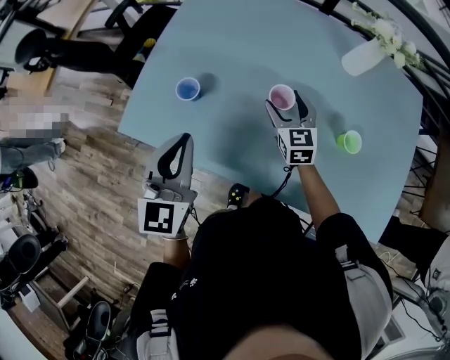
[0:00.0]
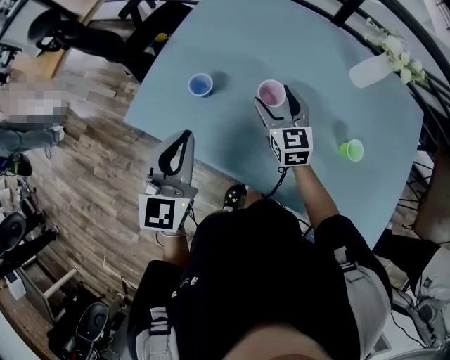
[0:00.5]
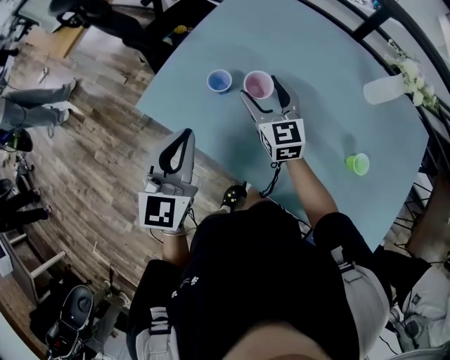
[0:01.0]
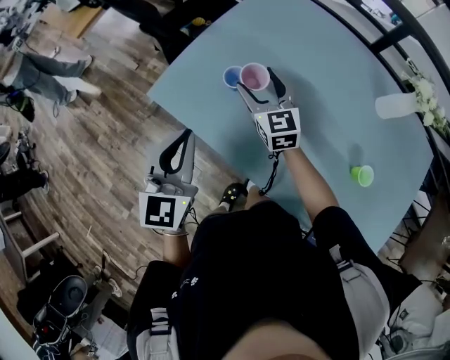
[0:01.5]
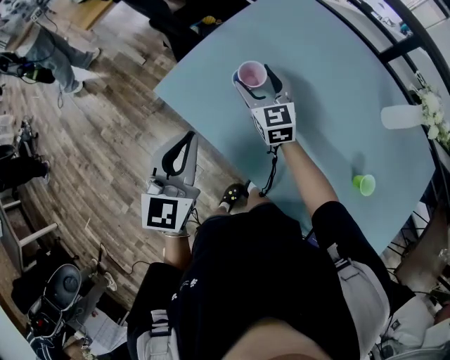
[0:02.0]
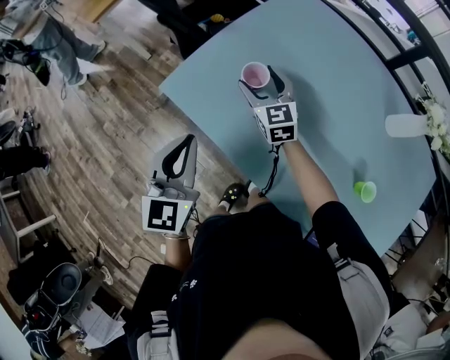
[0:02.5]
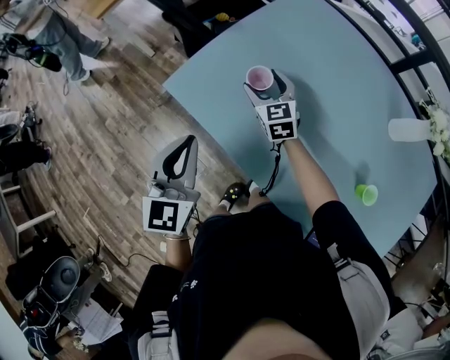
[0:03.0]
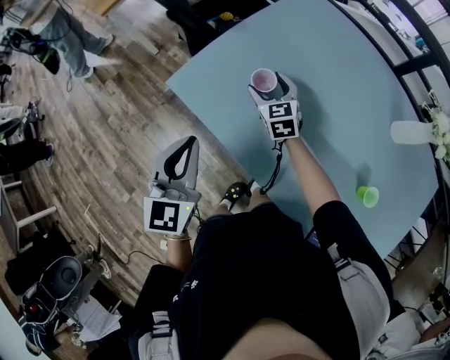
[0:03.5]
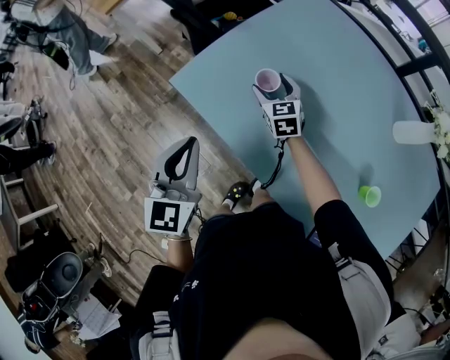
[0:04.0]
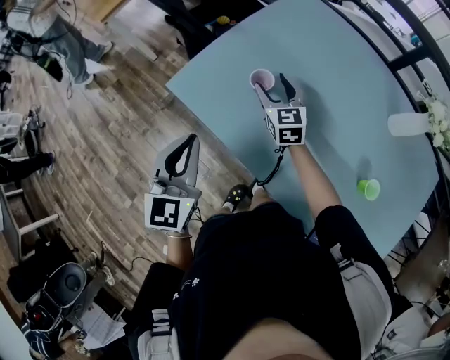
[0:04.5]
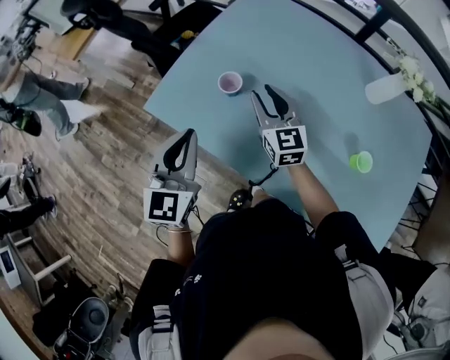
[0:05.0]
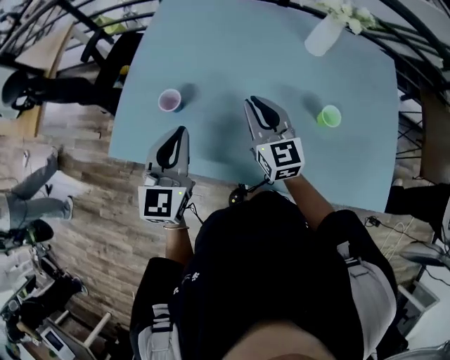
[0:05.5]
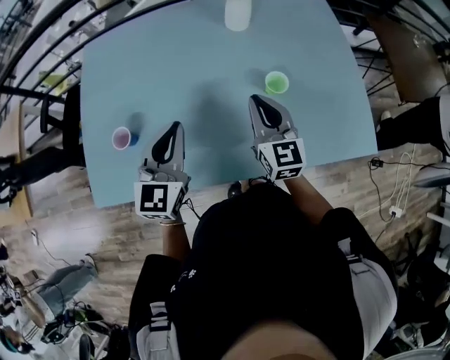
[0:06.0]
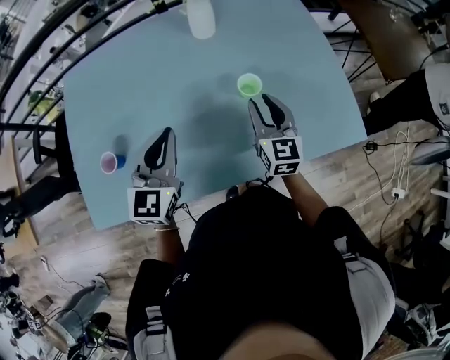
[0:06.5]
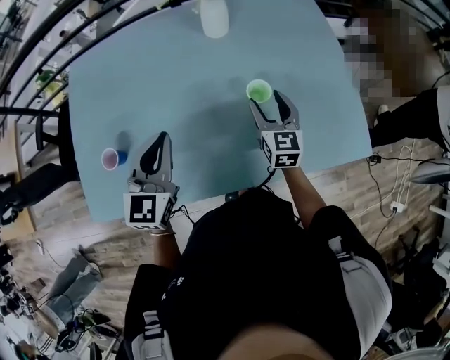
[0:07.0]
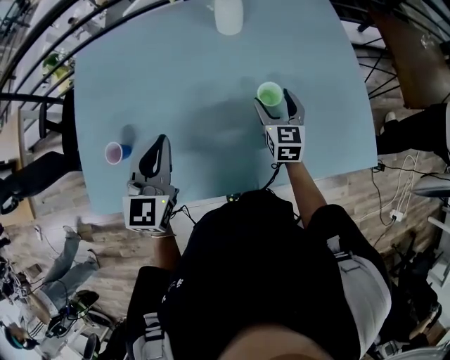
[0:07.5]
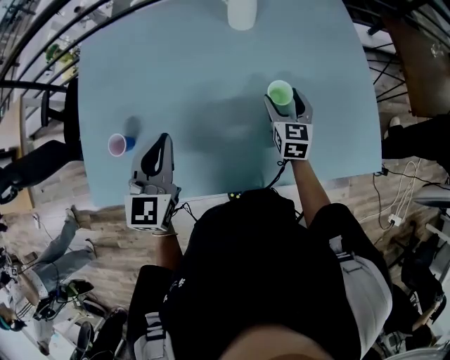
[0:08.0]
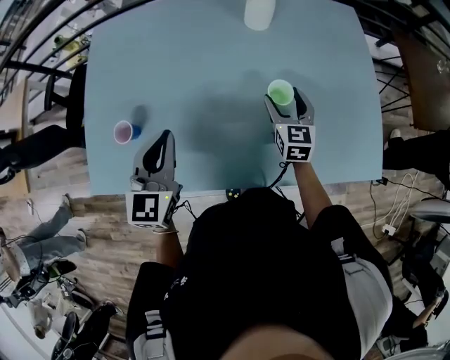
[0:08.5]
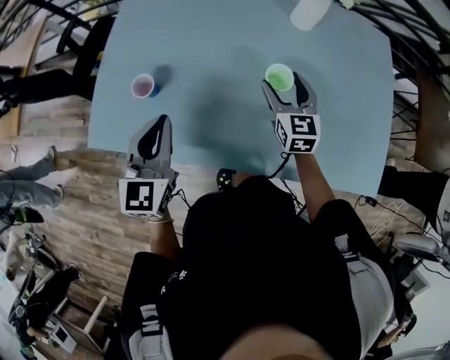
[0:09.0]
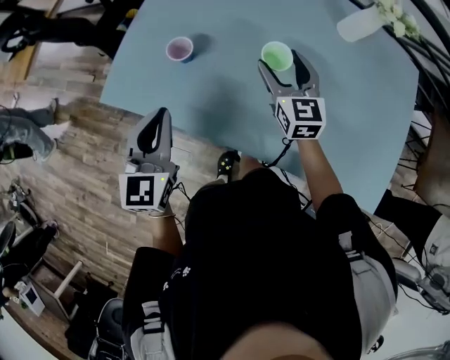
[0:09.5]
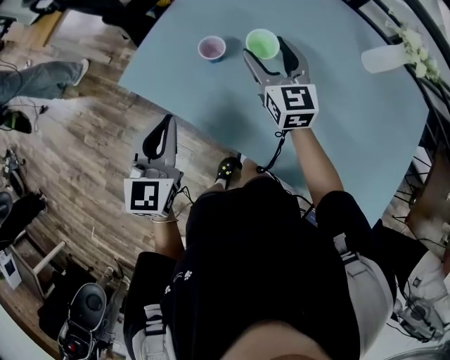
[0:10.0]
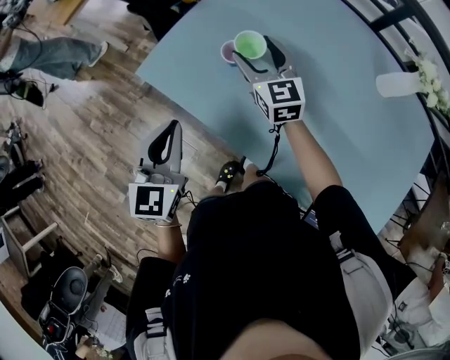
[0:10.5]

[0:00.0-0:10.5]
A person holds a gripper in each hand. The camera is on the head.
0:00.0 to 0:02.0: The right gripper shifts approximately 25 cm to the left, and changes its angle by some 30 degrees. The left gripper shifts approximately 10 cm to the left.
0:02.0 to 0:04.0: The right gripper is displaced downward by about 10 cm.
0:04.0 to 0:06.5: The right gripper changes place by roughly 60 cm, rotates some 70 degrees, and closes its fingers. Meanwhile the left gripper changes place by approximately 35 cm, and rotates some 60 degrees.
0:06.5 to 0:08.5: The left gripper is displaced to the left by approximately 10 cm. Meanwhile the right gripper is displaced forward and downward by about 10 cm, and opens its fingers.
0:08.5 to 0:10.5: The right gripper moves about 50 cm, and turns by approximately 60 degrees. The left gripper moves approximately 30 cm, and changes its angle by about 40 degrees.

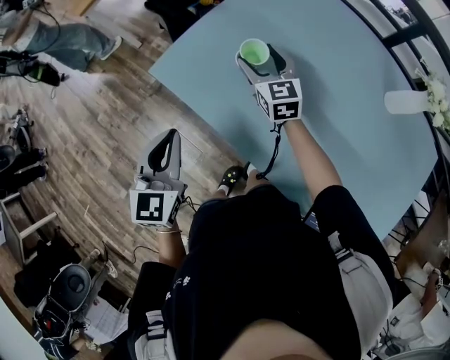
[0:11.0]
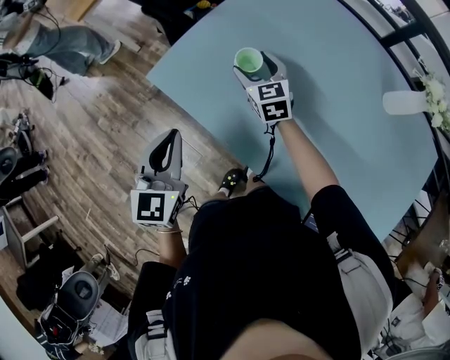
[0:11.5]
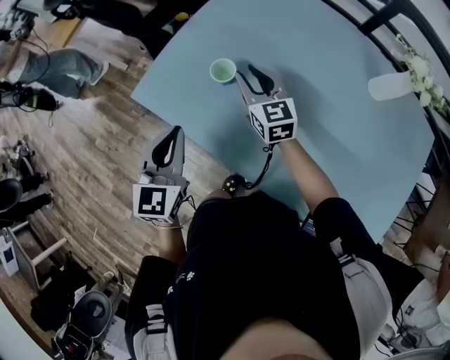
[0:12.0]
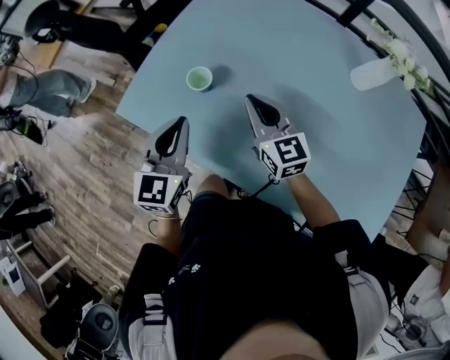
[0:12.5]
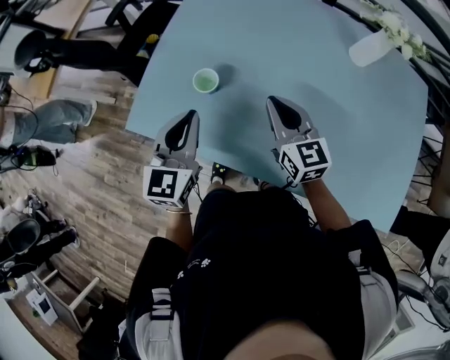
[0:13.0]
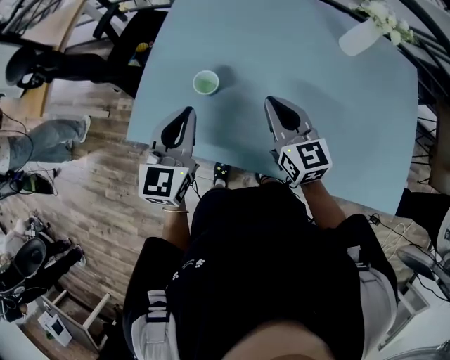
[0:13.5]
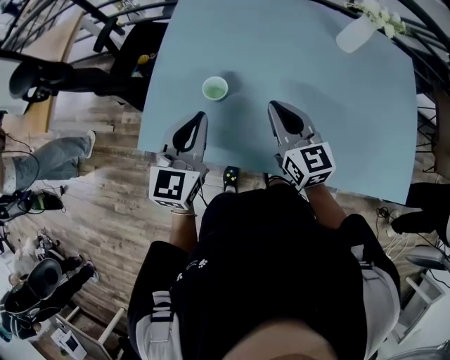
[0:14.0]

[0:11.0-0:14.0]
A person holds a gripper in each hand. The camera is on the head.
0:11.0 to 0:12.5: The right gripper moves to the right and backward, some 15 cm, and closes its fingers. The left gripper shifts roughly 15 cm to the right and forward.
0:12.5 to 0:14.0: The left gripper shifts by some 5 cm, and changes its angle by approximately 20 degrees, while the right gripper moves roughly 5 cm, and swivels roughly 20 degrees.

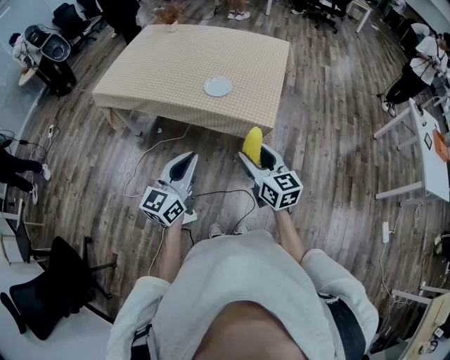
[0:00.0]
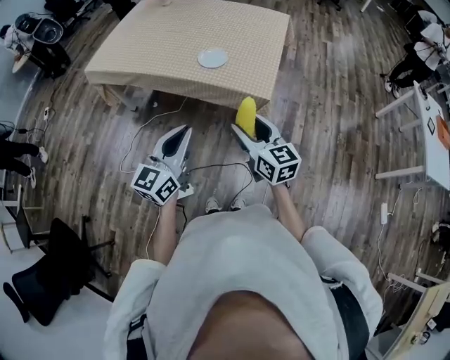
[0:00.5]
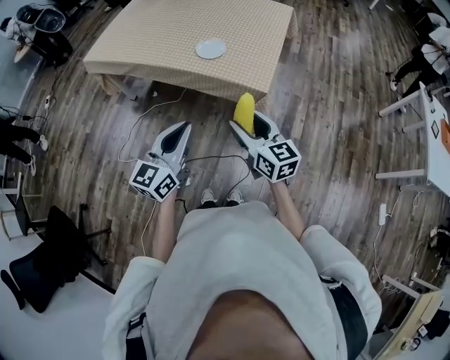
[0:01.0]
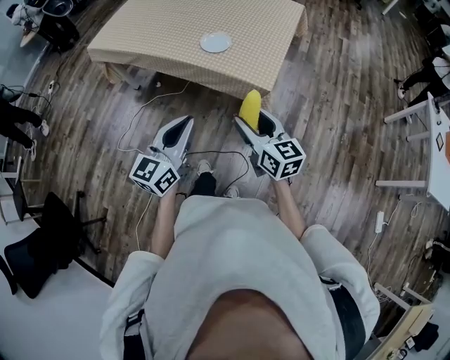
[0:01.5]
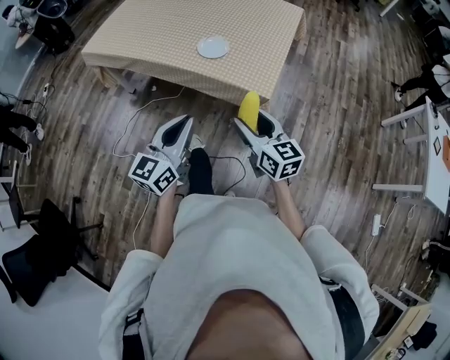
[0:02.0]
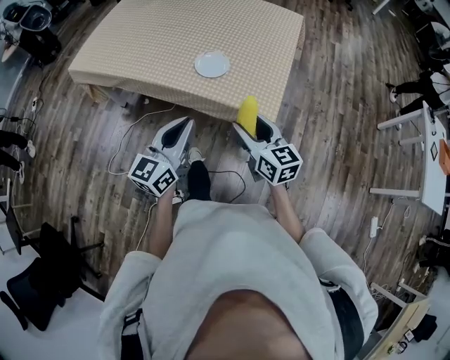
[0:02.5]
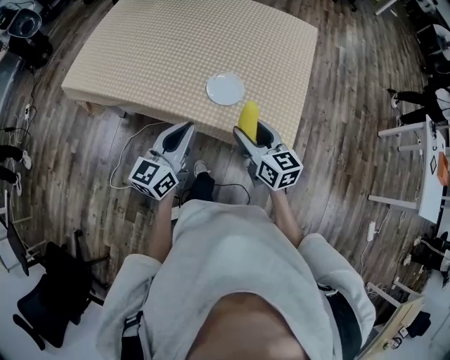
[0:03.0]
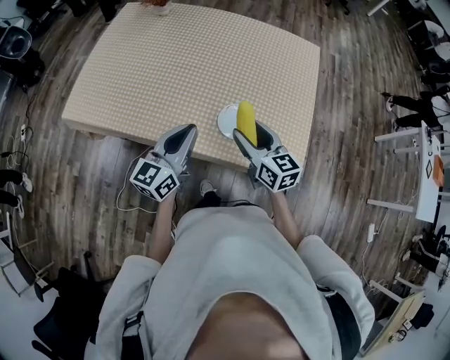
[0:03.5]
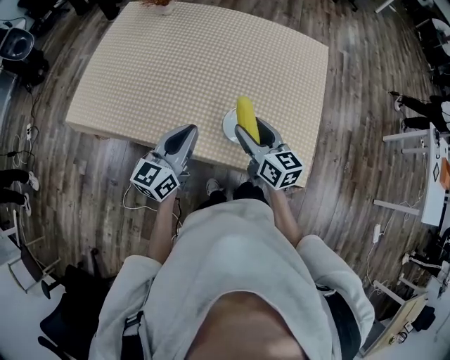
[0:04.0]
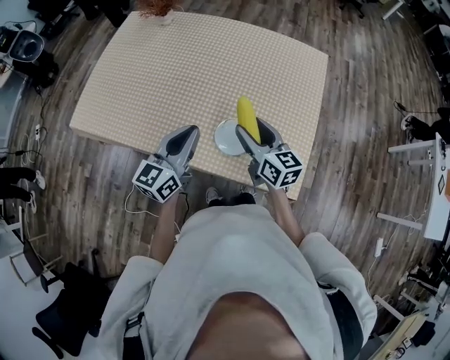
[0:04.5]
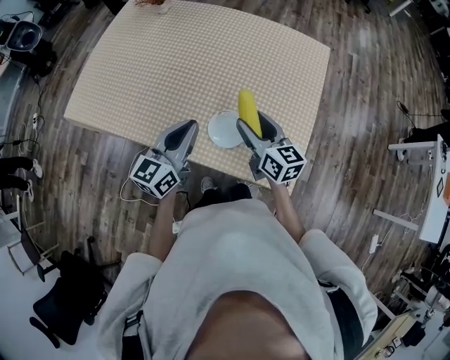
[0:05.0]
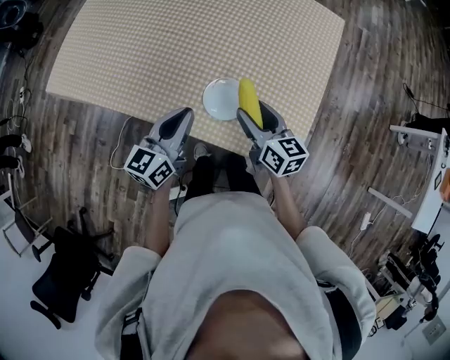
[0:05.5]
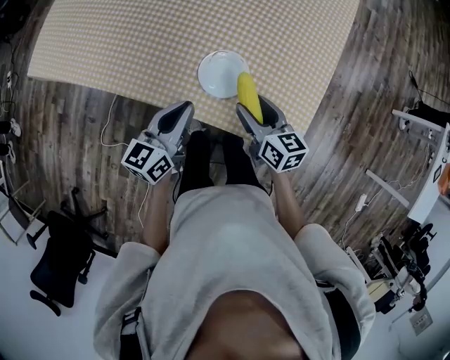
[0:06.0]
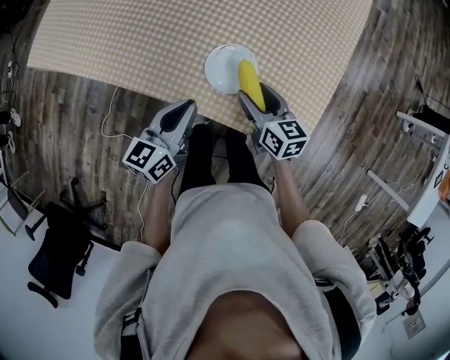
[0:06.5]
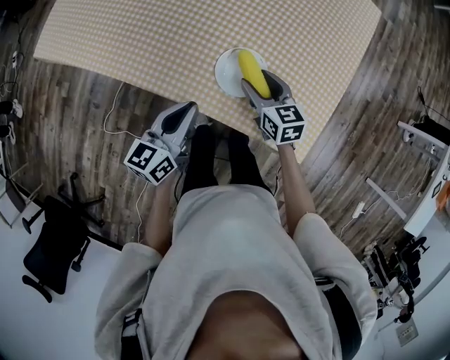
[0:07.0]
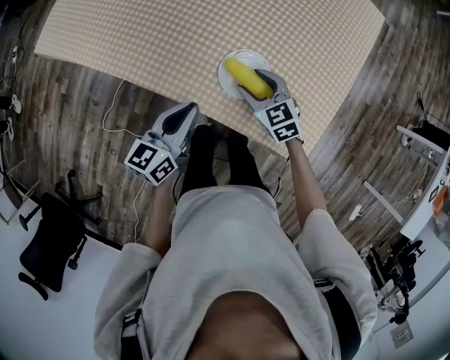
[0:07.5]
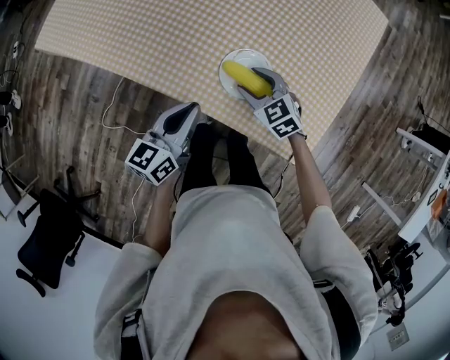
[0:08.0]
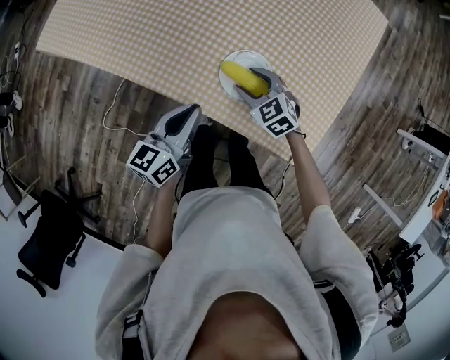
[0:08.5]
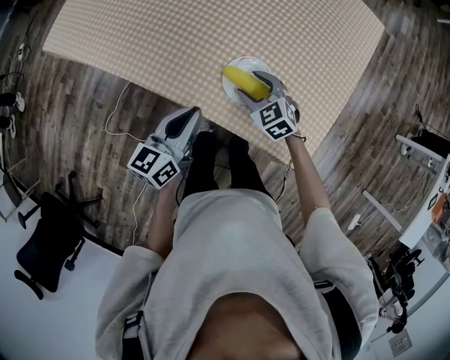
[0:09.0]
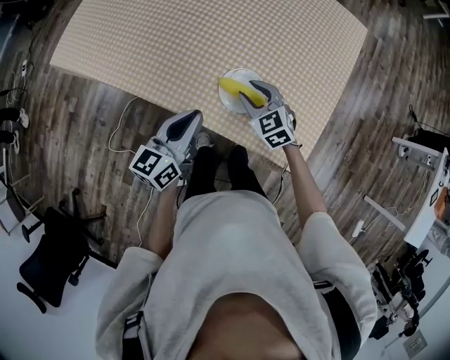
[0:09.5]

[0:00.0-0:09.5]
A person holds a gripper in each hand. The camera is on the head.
0:00.0 to 0:02.0: Both grippers travel together forward, some 5 cm.
0:02.0 to 0:04.0: The two grippers travel together, forward and to the left, some 40 cm.
0:04.0 to 0:05.5: Both grippers move downward and to the right, approximately 10 cm.
0:05.5 to 0:07.5: The left gripper is displaced downward by roughly 10 cm, while the right gripper moves downward and to the left, about 15 cm, and changes its angle by approximately 40 degrees.
0:07.5 to 0:09.5: The right gripper closes up. Meanwhile the left gripper travels upward by some 5 cm.

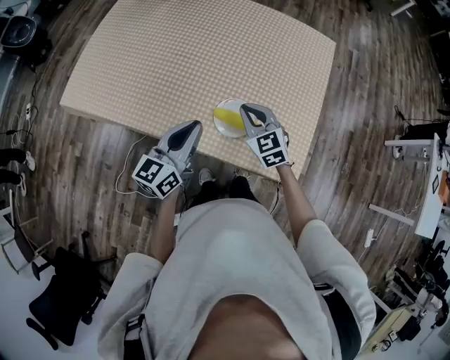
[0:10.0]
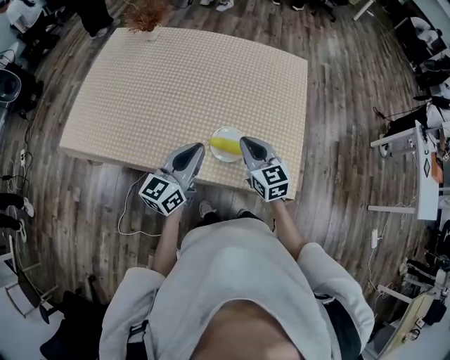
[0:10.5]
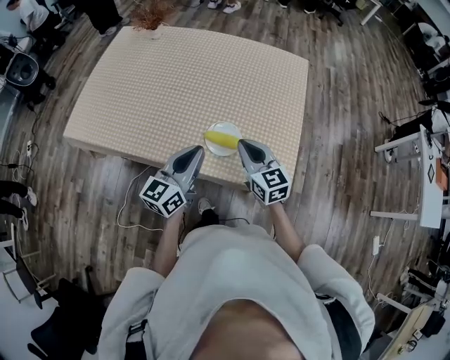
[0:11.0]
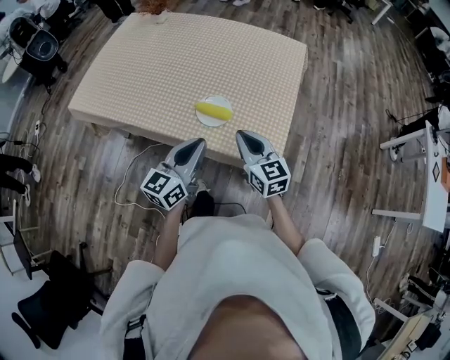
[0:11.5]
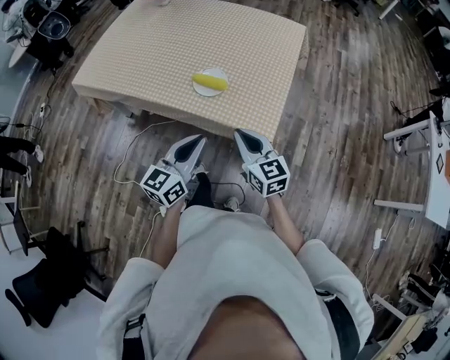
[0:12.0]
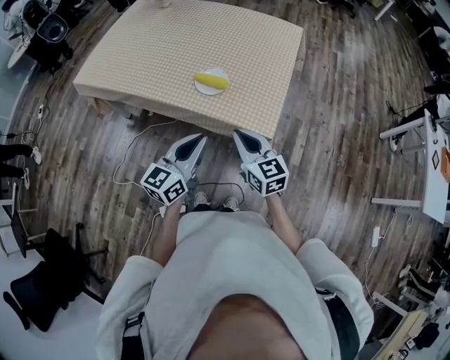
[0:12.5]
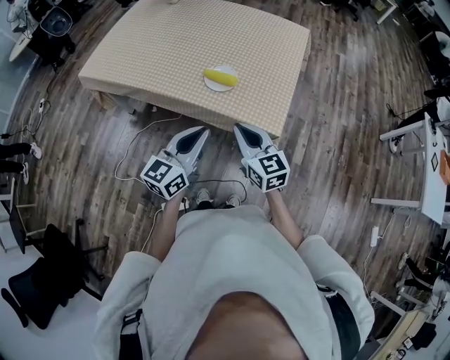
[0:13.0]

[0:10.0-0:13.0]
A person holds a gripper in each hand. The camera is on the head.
0:10.0 to 0:11.5: The left gripper heads backward and to the right, covering about 15 cm, while the right gripper heads backward, to the right and upward, covering roughly 20 cm, and swivels some 30 degrees.
0:11.5 to 0:13.0: The two grippers go approximately 15 cm backward.
